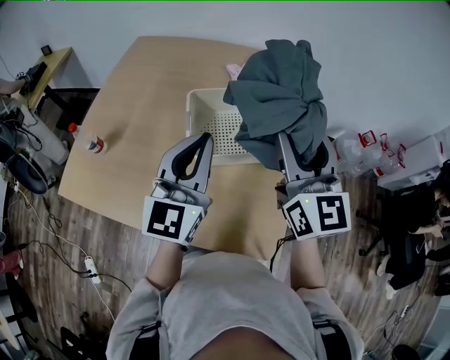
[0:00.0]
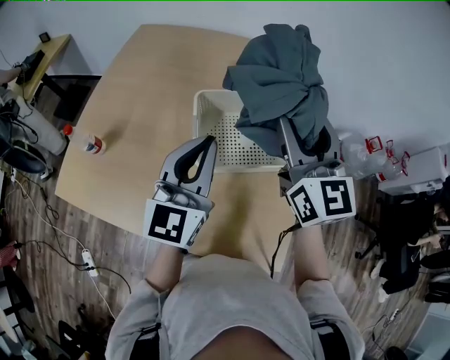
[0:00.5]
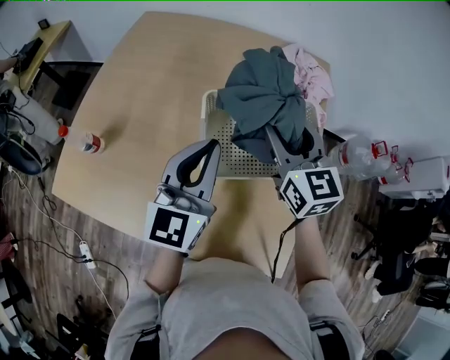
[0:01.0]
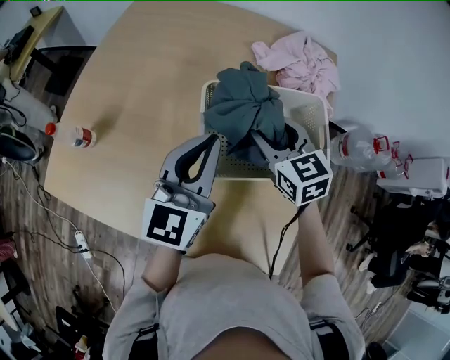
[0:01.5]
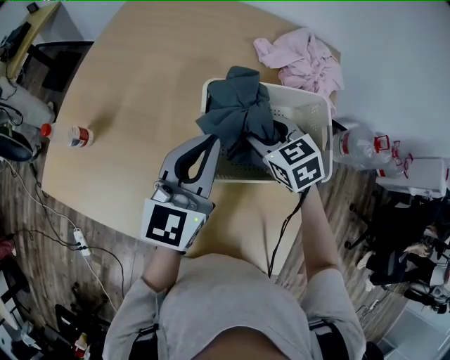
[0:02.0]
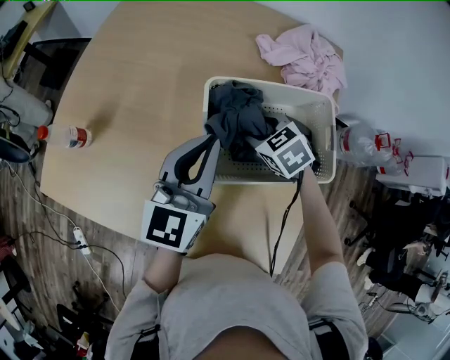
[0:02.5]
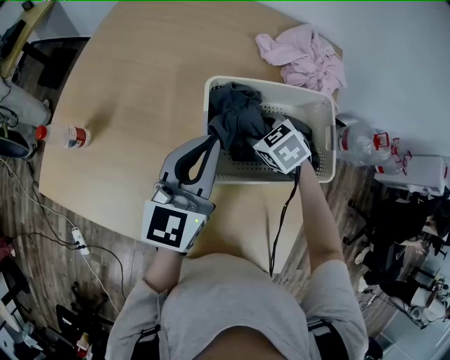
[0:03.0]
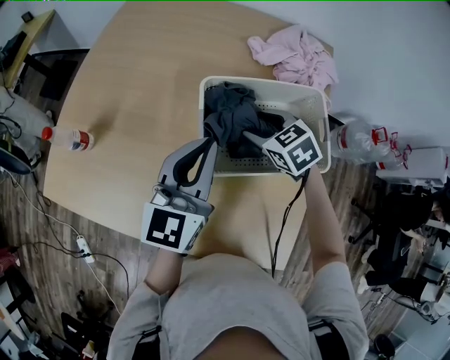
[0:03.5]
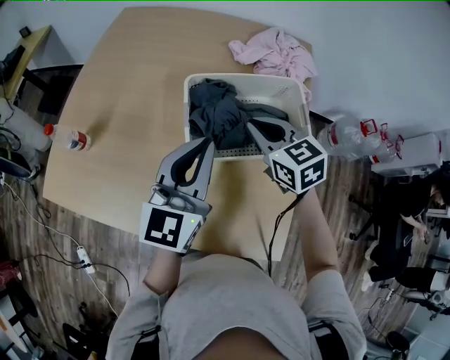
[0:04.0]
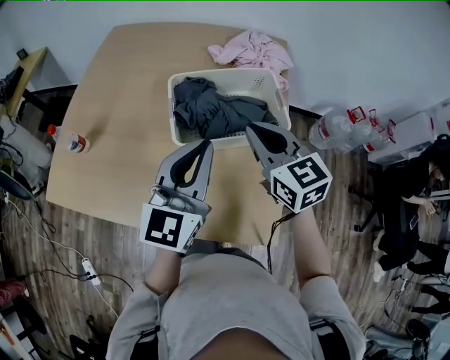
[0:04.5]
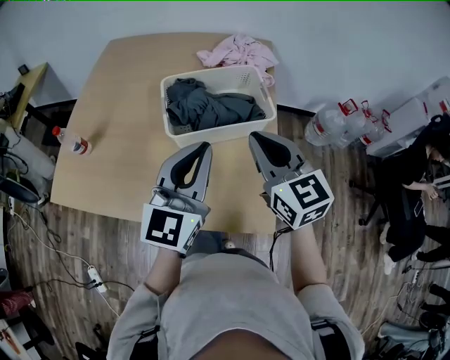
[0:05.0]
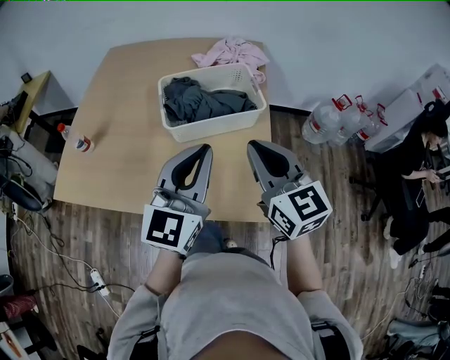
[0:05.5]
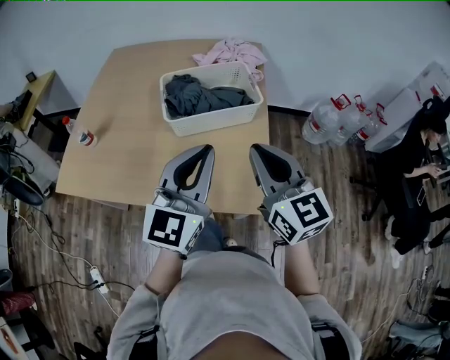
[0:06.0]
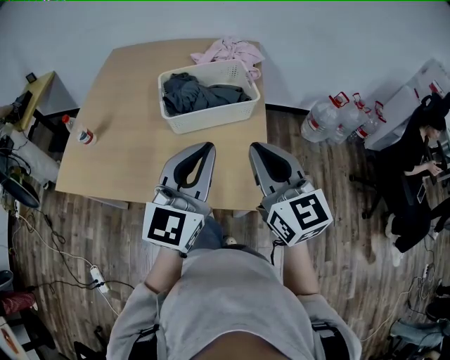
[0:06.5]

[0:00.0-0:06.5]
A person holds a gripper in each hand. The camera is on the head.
0:00.0 to 0:02.0: The right gripper heads downward and forward, covering approximately 30 cm, and points its fingers some 50 degrees further downward. Meanwhile the left gripper moves forward and downward, some 15 cm.
0:02.0 to 0:04.5: Both grippers travel together backward and upward, approximately 20 cm. The right gripper turns by about 30 degrees, and closes its fingers.
0:04.5 to 0:06.5: The left gripper heads backward and to the right, covering about 20 cm; the right gripper goes some 25 cm backward.

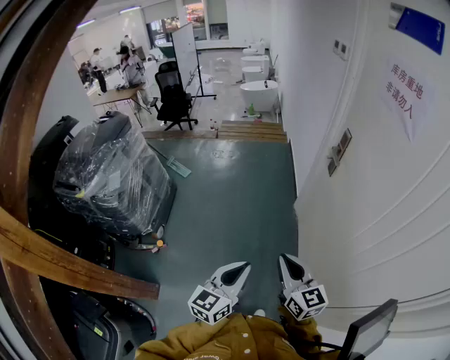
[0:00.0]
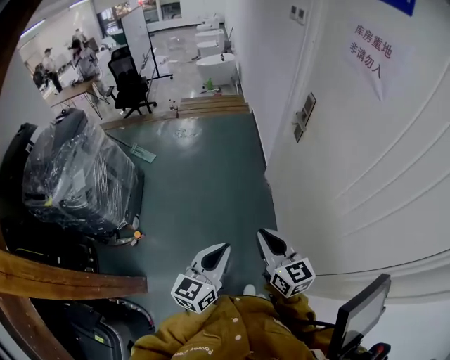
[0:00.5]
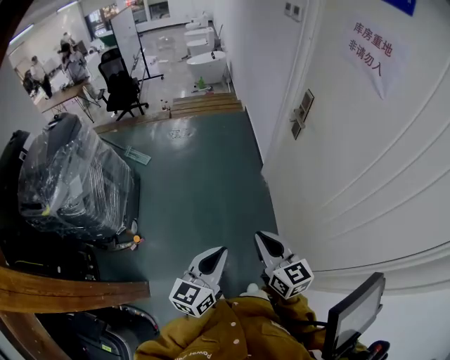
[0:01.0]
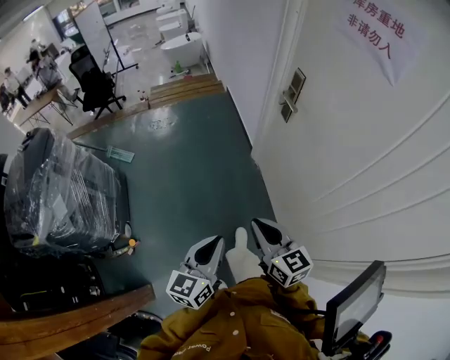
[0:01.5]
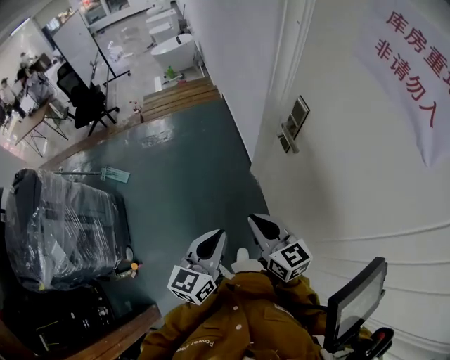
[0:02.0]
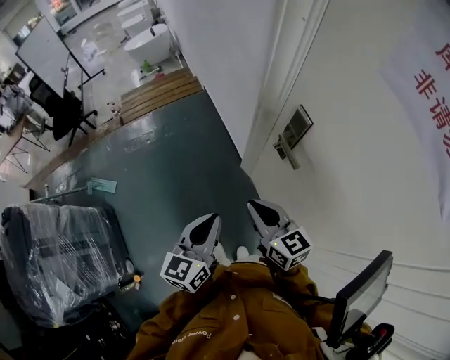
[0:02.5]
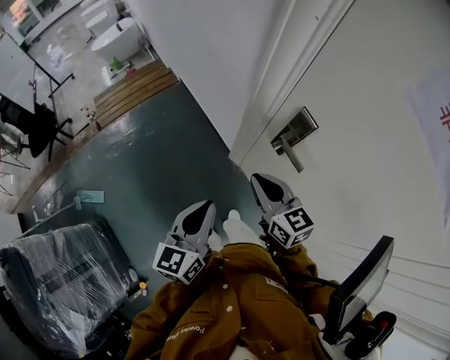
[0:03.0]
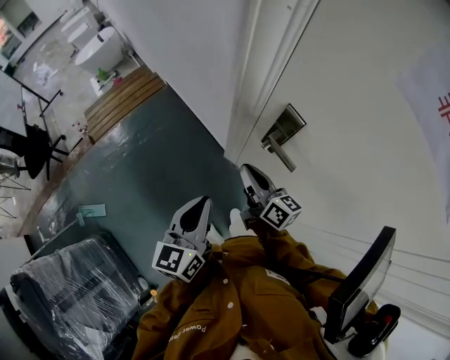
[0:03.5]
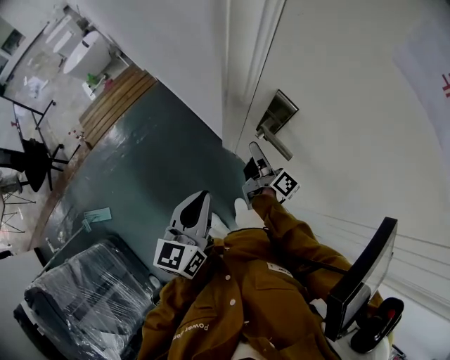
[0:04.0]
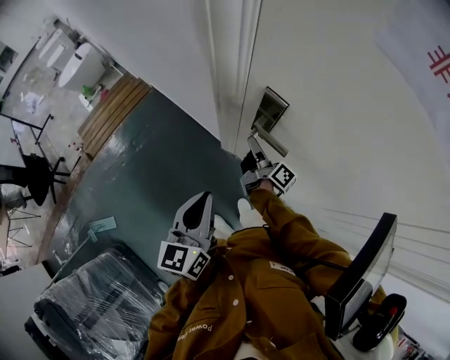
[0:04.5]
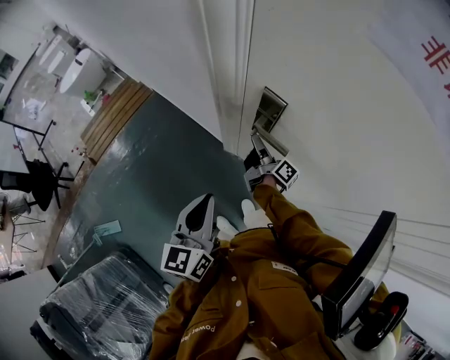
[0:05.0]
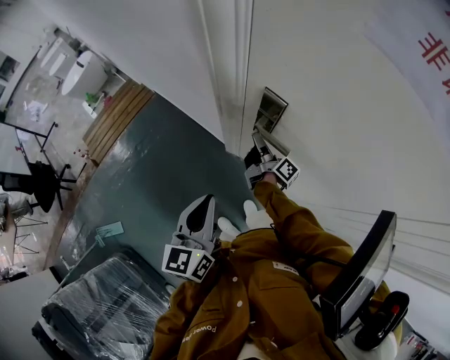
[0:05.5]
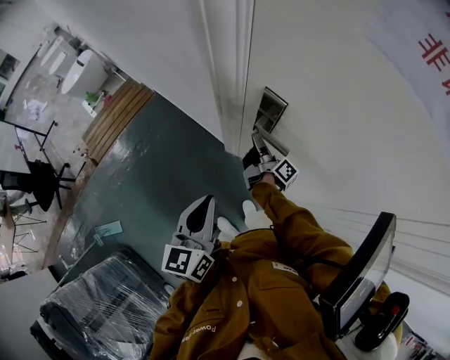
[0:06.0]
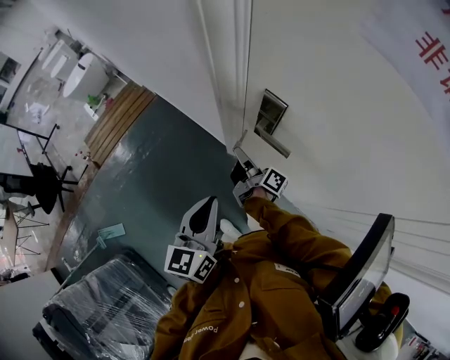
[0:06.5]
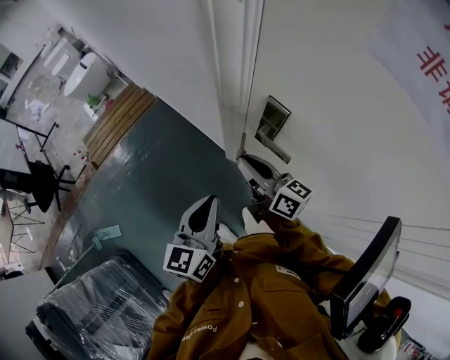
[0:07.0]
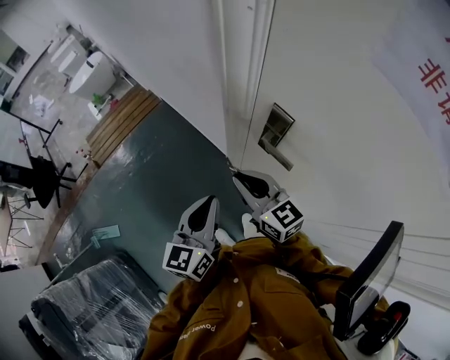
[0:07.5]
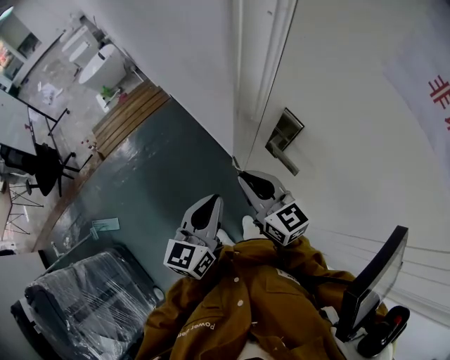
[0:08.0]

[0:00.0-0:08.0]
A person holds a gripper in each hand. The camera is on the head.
0:00.0 to 0:02.0: Both grippers move forward, roughly 35 cm.
0:02.0 to 0:04.0: The right gripper ends up about 40 cm from where it was, and turns by approximately 70 degrees. The left gripper changes place by some 30 cm.
0:04.0 to 0:06.0: The right gripper moves about 5 cm.
0:06.0 to 0:08.0: The right gripper moves upward, to the left and backward, some 25 cm, and twists approximately 70 degrees counterclockwise, seen from behind.

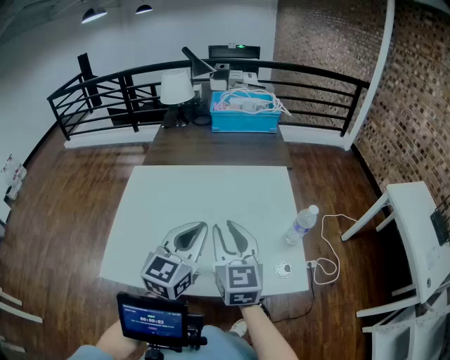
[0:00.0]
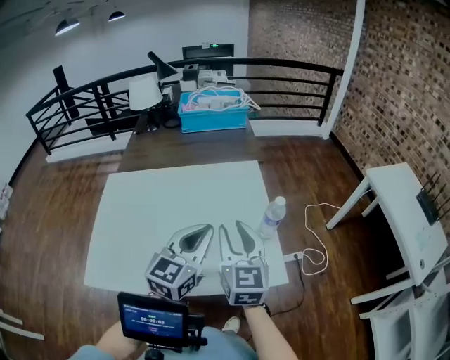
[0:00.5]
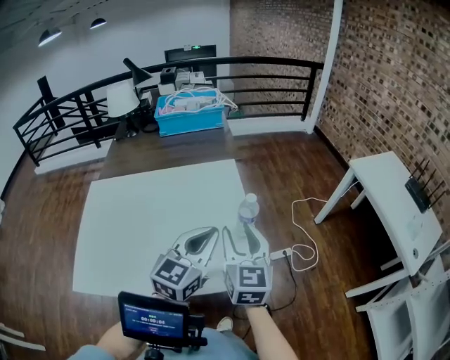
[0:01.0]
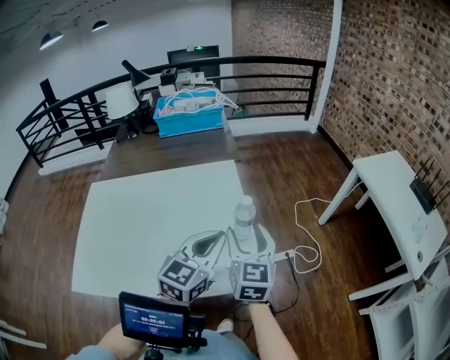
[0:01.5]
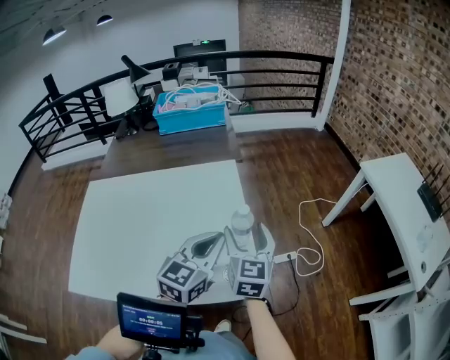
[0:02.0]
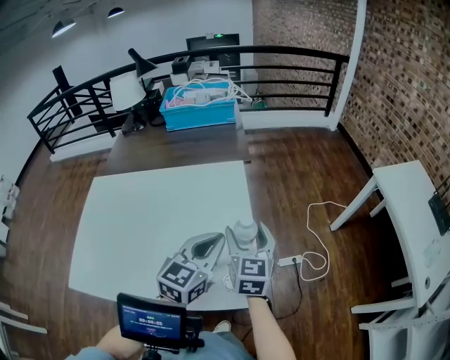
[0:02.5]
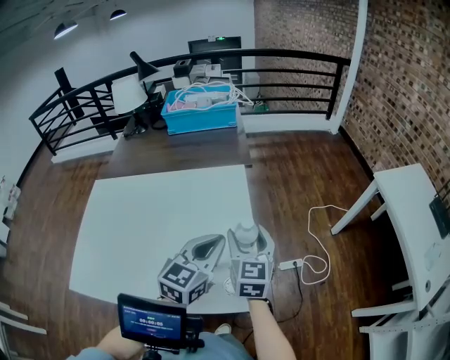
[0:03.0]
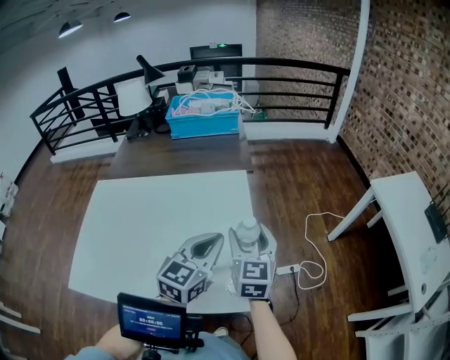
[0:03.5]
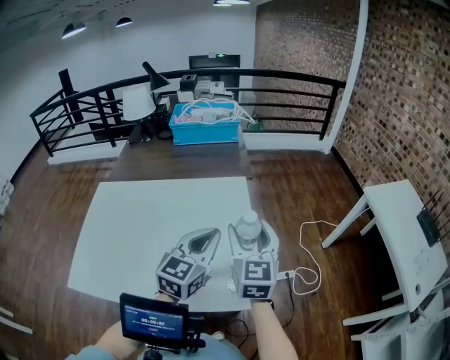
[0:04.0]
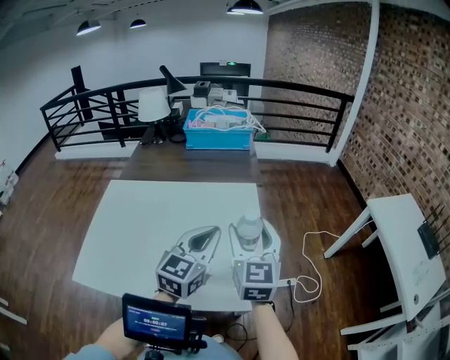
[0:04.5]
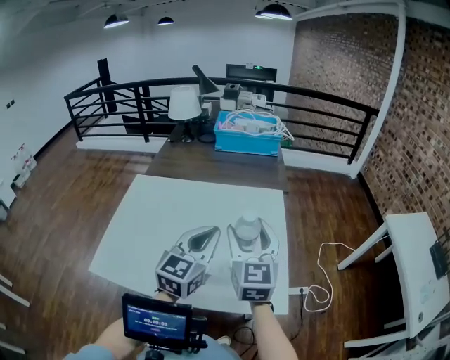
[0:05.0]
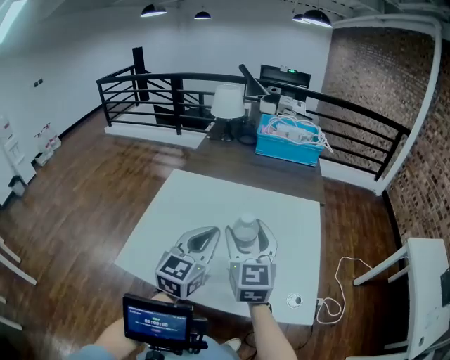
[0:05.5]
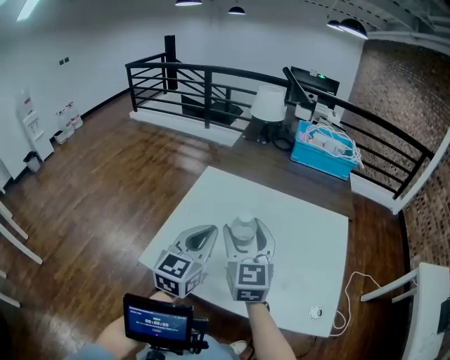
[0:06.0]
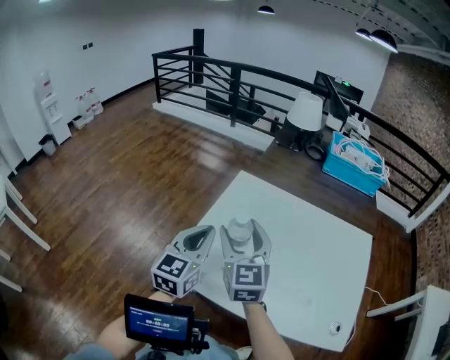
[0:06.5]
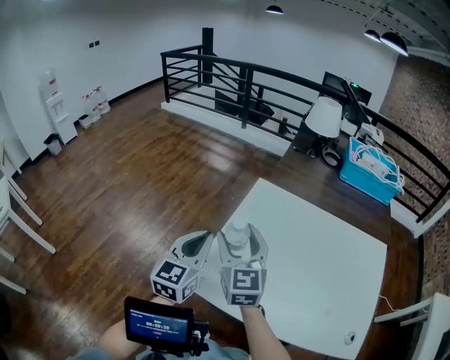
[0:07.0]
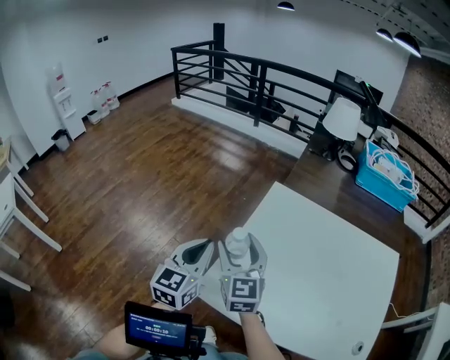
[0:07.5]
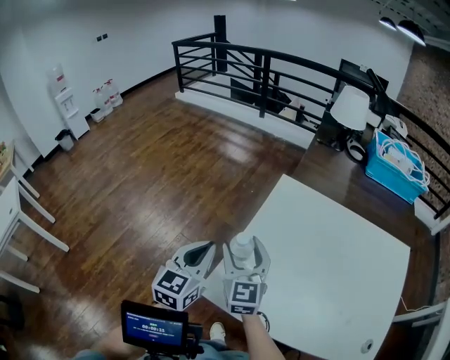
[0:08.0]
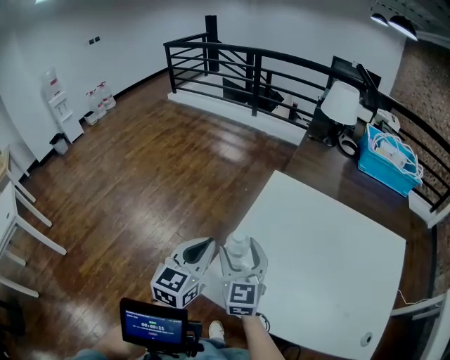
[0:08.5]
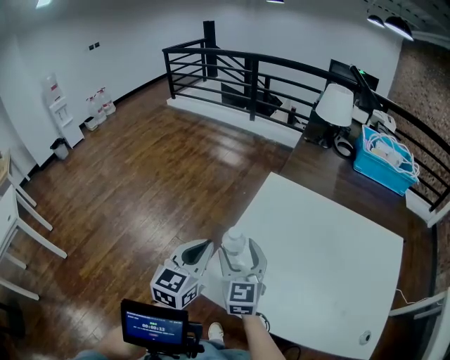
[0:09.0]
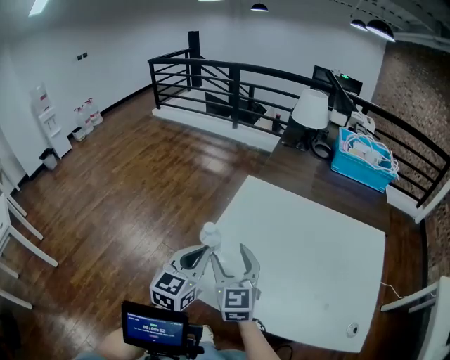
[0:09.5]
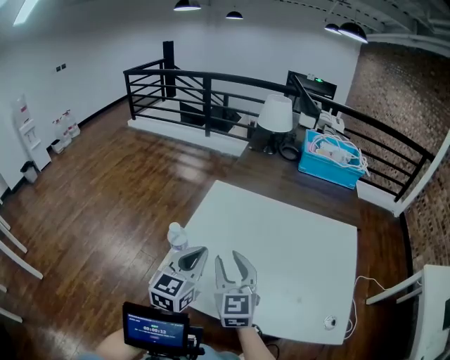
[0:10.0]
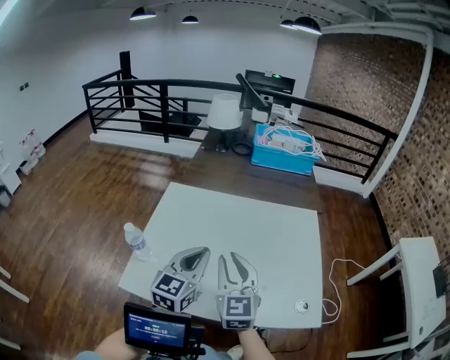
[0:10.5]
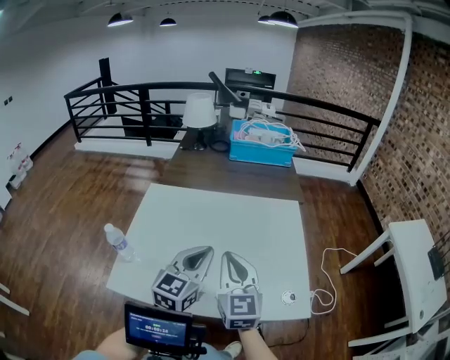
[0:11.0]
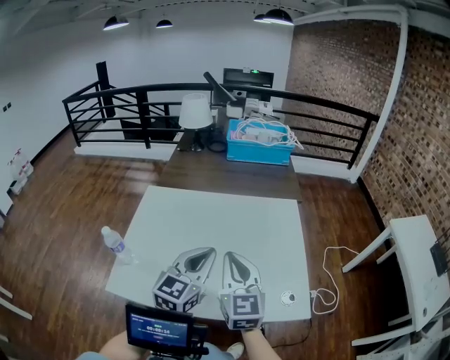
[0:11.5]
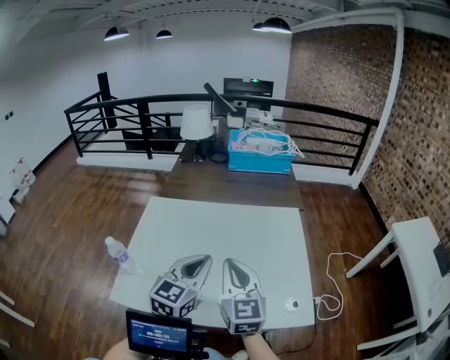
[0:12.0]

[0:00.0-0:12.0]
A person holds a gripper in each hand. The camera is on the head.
0:00.0 to 0:02.0: The right gripper moves to the right and forward, some 25 cm, and opens. The left gripper travels to the right by some 25 cm.
0:02.0 to 0:04.0: The left gripper shifts by roughly 5 cm. Meanwhile the right gripper heads upward, covering some 5 cm.
0:04.0 to 0:06.0: The two grippers travel together, some 40 cm. The right gripper changes its angle by about 30 degrees. The left gripper rotates roughly 30 degrees.
0:06.0 to 0:08.0: The left gripper is displaced to the left by roughly 25 cm; the right gripper moves to the left and downward, some 30 cm.
0:08.0 to 0:10.0: The right gripper goes roughly 20 cm to the right and backward, and closes up. The left gripper travels to the right by approximately 20 cm.
0:10.0 to 0:12.0: Both grippers travel together to the right, roughly 25 cm. The right gripper closes up. Meanwhile the left gripper changes its angle by some 20 degrees.
